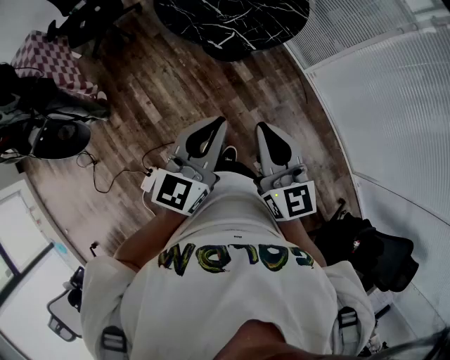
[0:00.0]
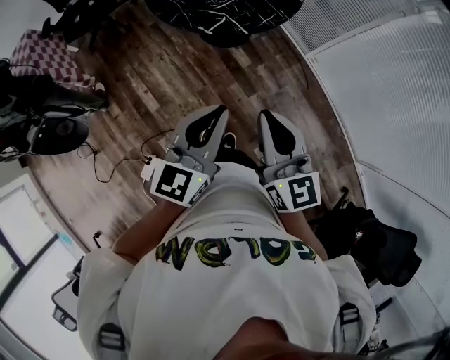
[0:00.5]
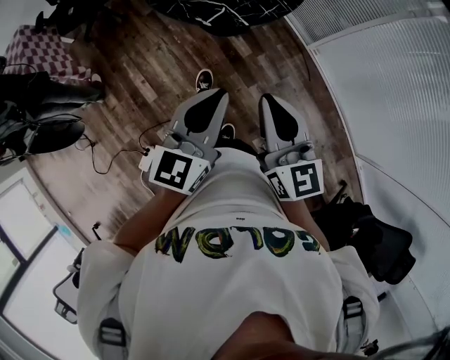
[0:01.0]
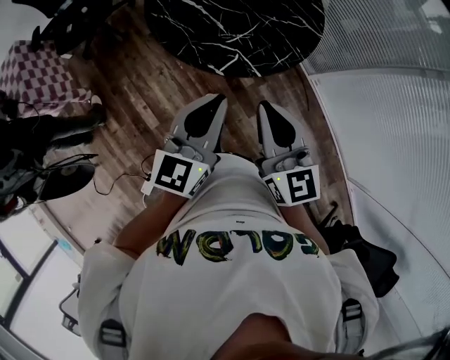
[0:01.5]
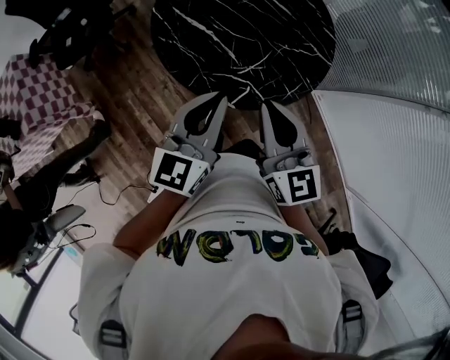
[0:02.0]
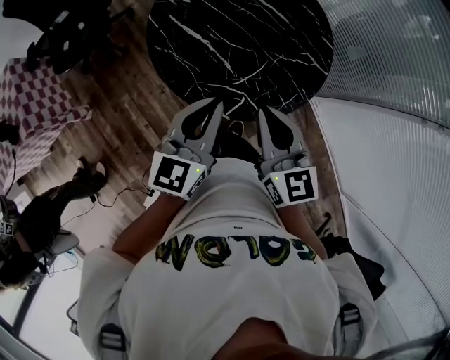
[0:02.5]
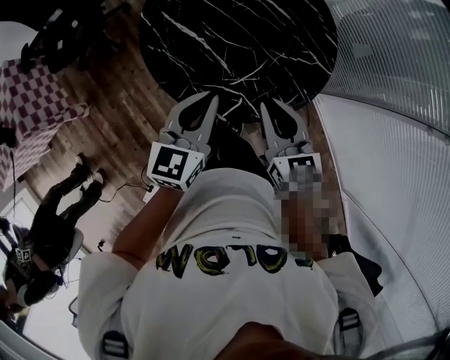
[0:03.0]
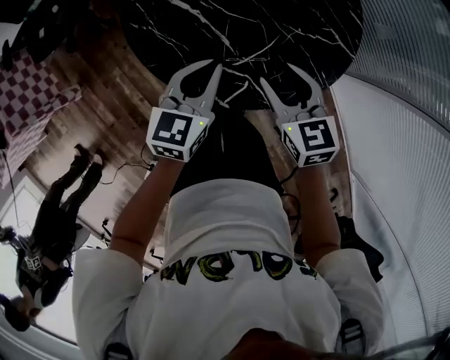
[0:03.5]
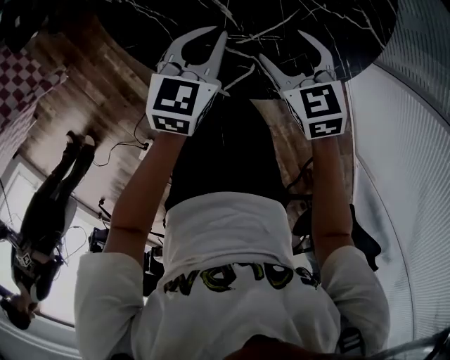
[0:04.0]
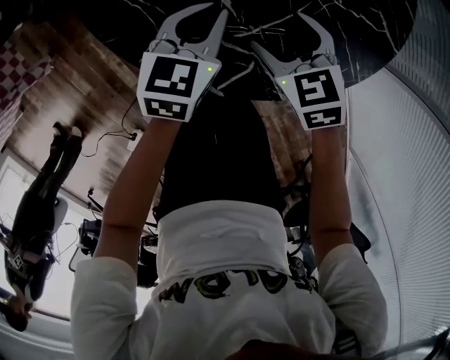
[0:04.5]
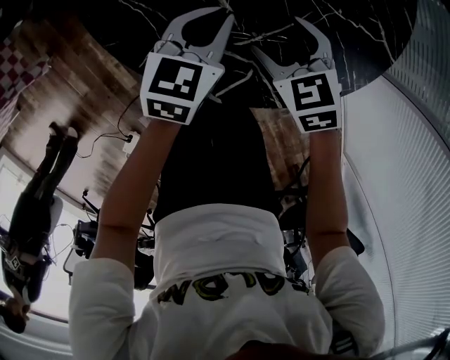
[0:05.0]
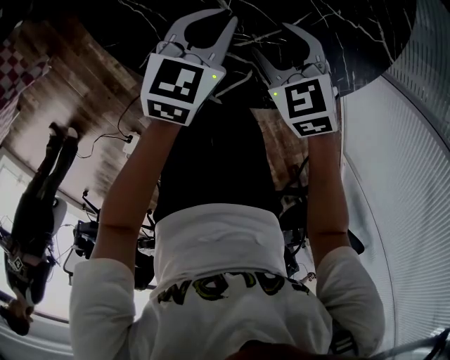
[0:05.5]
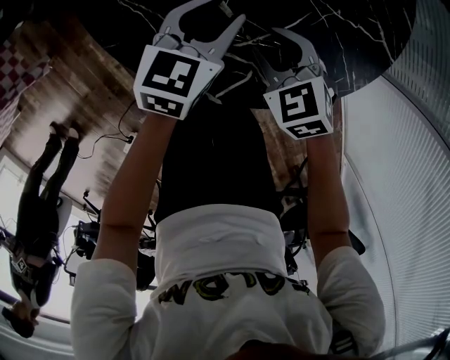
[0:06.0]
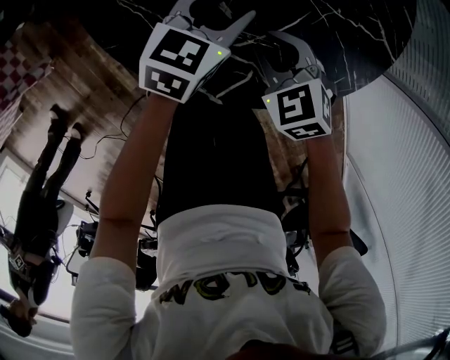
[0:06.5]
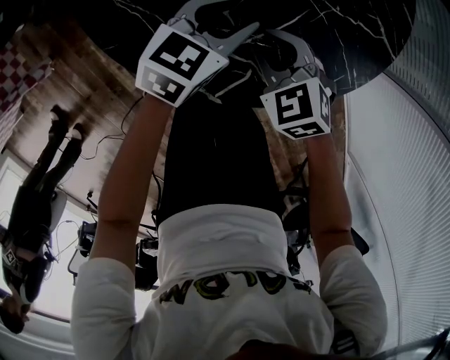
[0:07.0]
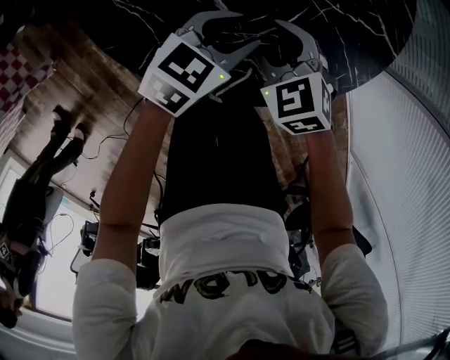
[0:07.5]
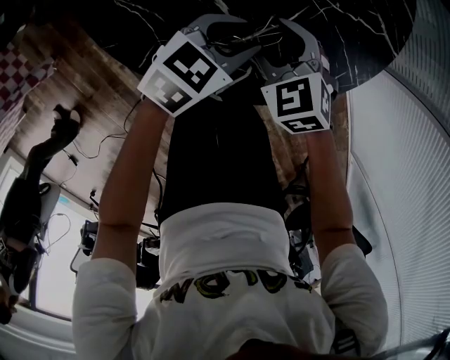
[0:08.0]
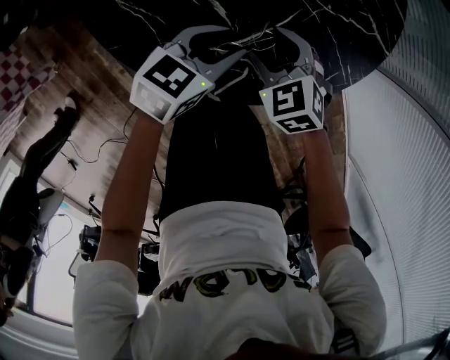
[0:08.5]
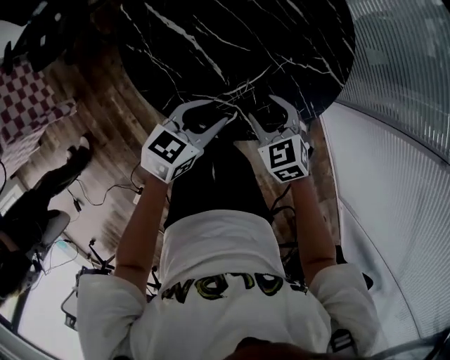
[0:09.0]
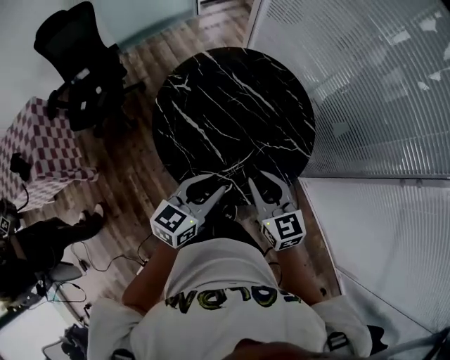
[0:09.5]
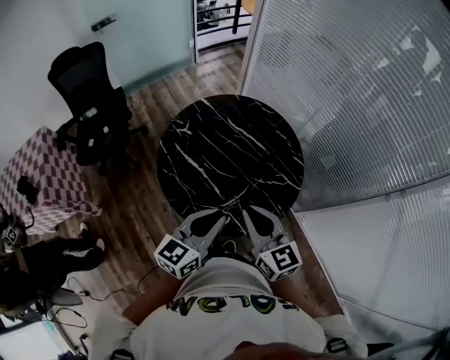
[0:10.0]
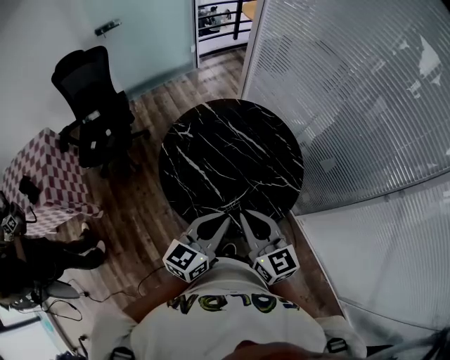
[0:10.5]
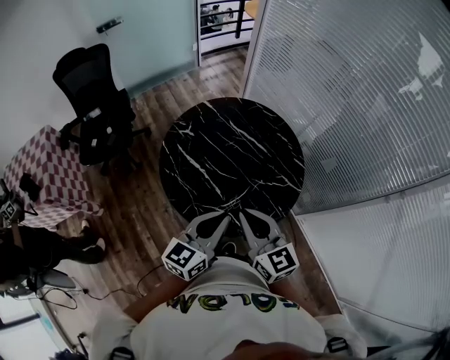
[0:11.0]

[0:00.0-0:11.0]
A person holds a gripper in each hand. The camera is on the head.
0:00.0 to 0:02.0: Both grippers travel together forward, about 40 cm.
0:02.0 to 0:03.5: The grippers both shift downward and forward by roughly 25 cm. The right gripper rotates roughly 30 degrees, and opens its fingers.
0:03.5 to 0:05.5: Both grippers move downward, some 20 cm. The right gripper turns by about 30 degrees.
0:05.5 to 0:07.5: The left gripper heads to the right, covering roughly 5 cm, changes its angle by approximately 20 degrees, and opens its fingers, while the right gripper closes, then reopens.
0:07.5 to 0:09.0: The right gripper is displaced upward by approximately 10 cm. Meanwhile the left gripper heads upward and backward, covering some 15 cm.
0:09.0 to 0:11.0: The two grippers go roughly 30 cm upward. The left gripper swivels approximately 30 degrees, and closes its fingers, while the right gripper tilts its fingers approximately 40 degrees upward, and closes its fingers.

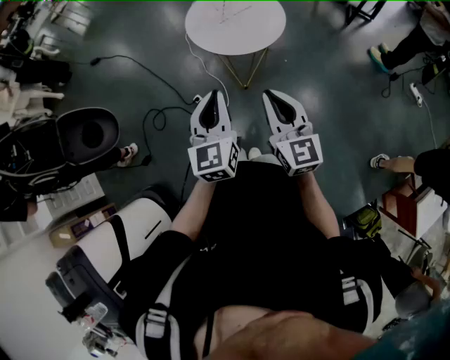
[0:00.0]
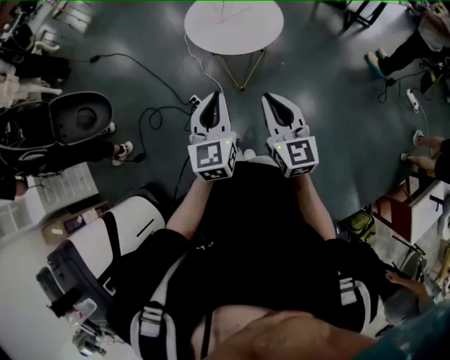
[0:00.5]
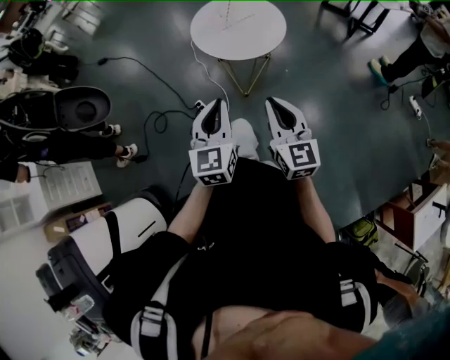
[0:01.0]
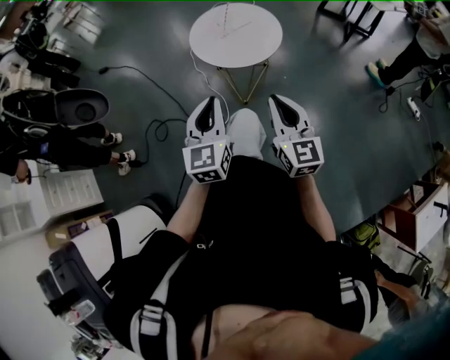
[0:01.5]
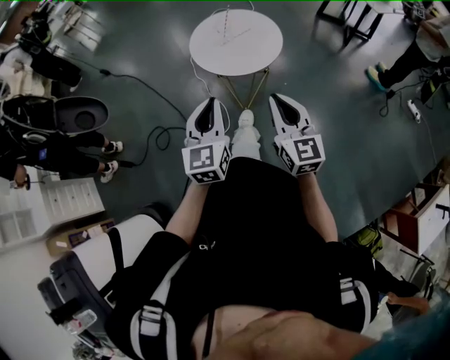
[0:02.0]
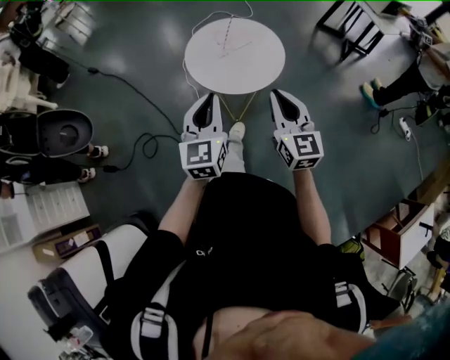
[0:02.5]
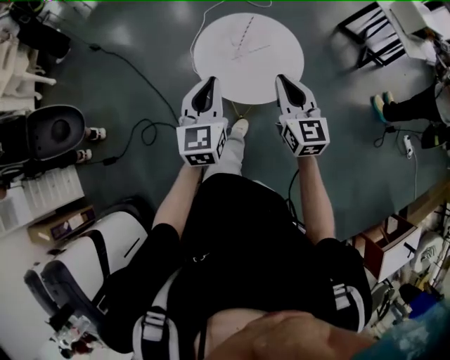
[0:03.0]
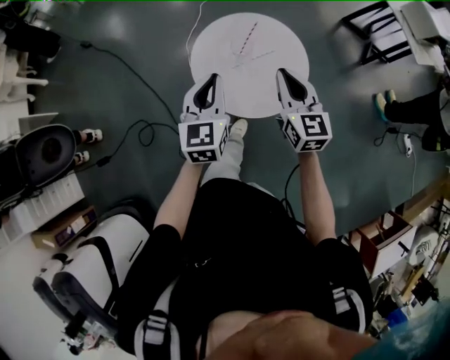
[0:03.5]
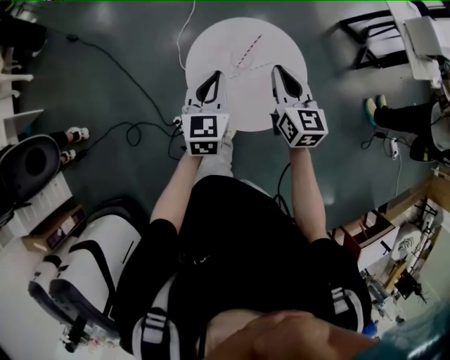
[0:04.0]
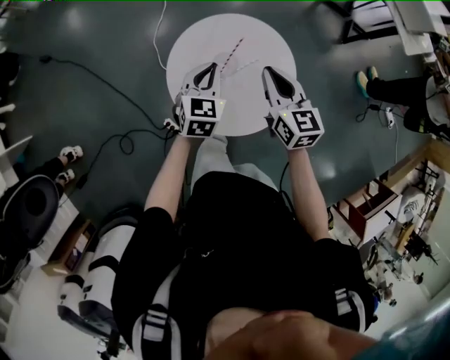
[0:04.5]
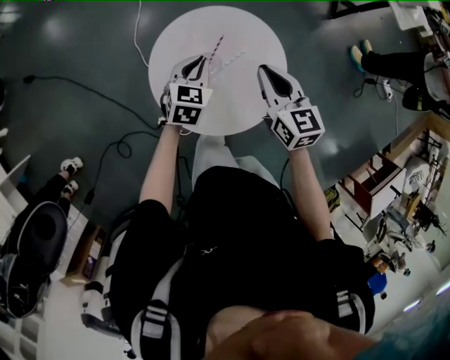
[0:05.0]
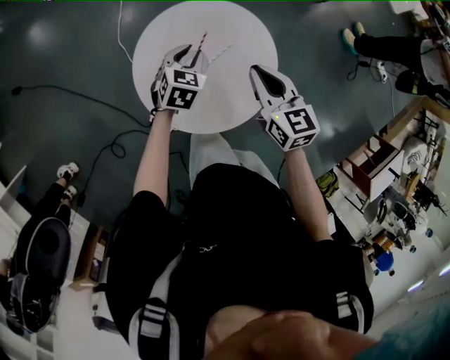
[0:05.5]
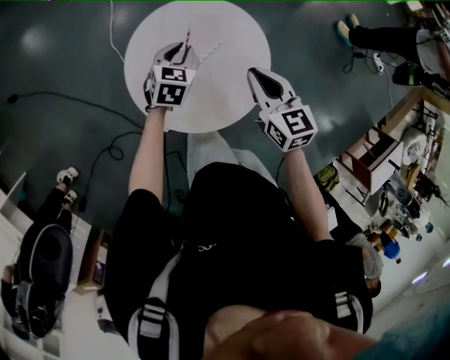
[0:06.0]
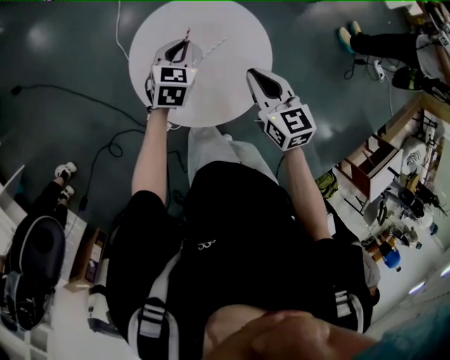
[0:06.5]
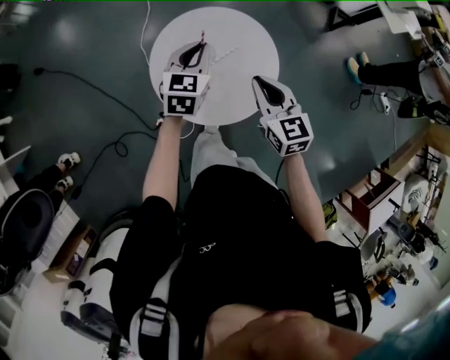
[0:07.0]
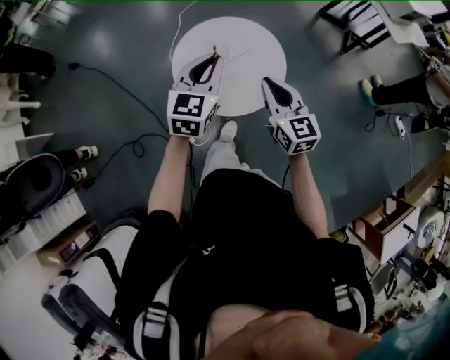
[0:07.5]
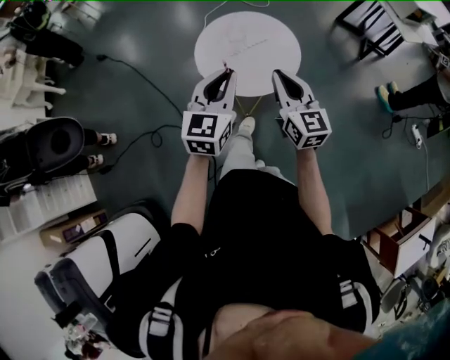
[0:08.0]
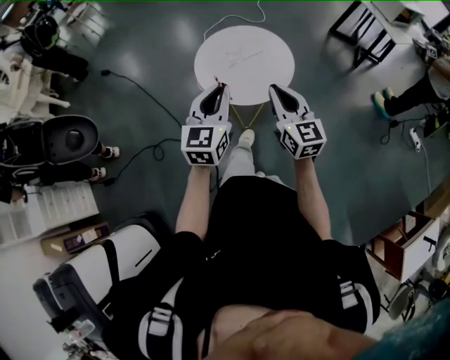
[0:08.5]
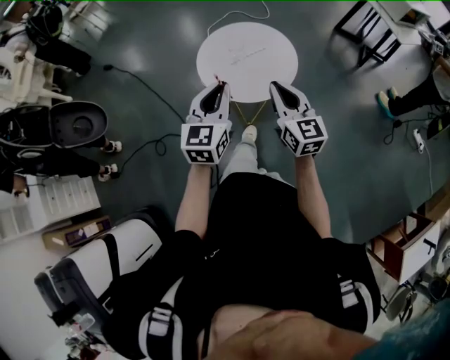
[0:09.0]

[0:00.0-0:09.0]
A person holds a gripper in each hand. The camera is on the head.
0:00.0 to 0:02.0: The right gripper ends up some 5 cm from where it was.
0:02.0 to 0:04.5: The two grippers travel together, forward, about 50 cm. The left gripper rotates some 30 degrees. Meanwhile the right gripper turns by about 20 degrees.
0:04.5 to 0:07.0: The right gripper travels backward by some 10 cm. Meanwhile the left gripper moves some 10 cm downward and comes back.
0:07.0 to 0:09.0: The right gripper is displaced backward by some 20 cm, and changes its angle by some 20 degrees. Meanwhile the left gripper moves backward, roughly 30 cm, and rotates roughly 20 degrees.

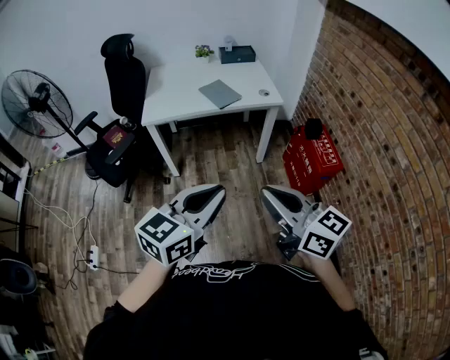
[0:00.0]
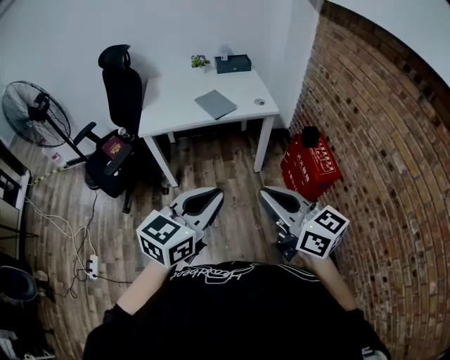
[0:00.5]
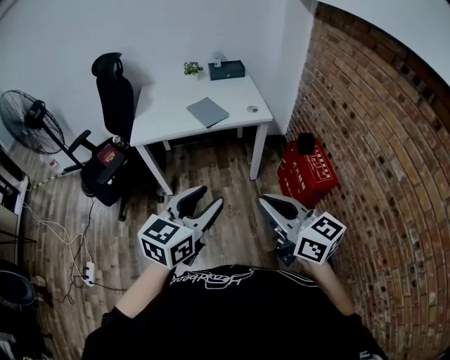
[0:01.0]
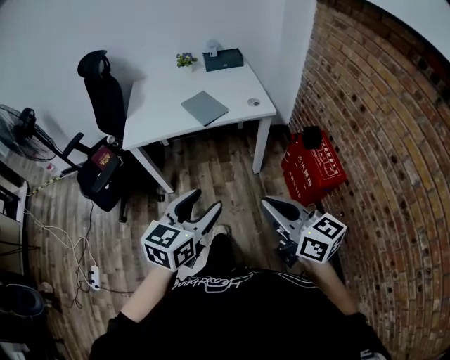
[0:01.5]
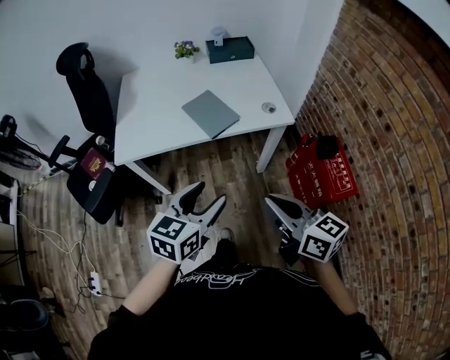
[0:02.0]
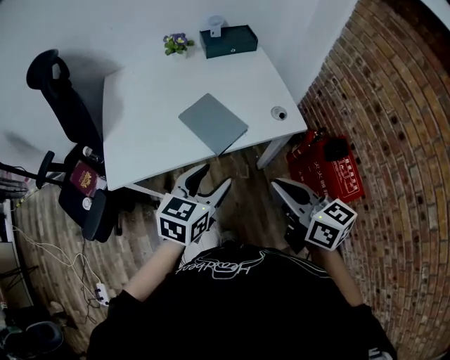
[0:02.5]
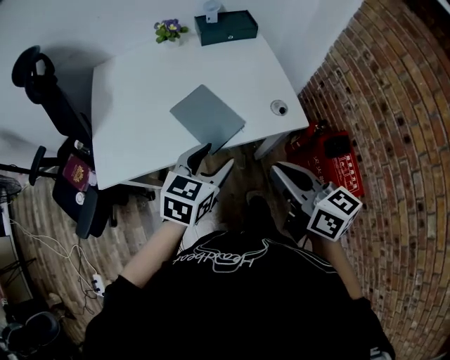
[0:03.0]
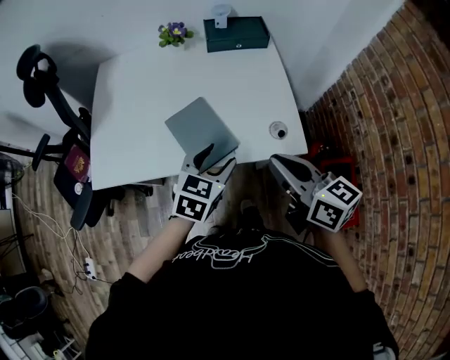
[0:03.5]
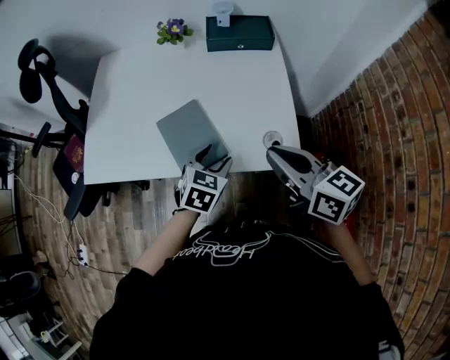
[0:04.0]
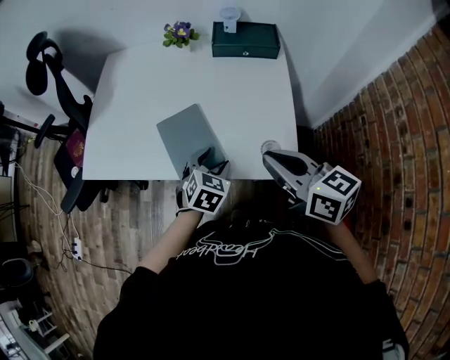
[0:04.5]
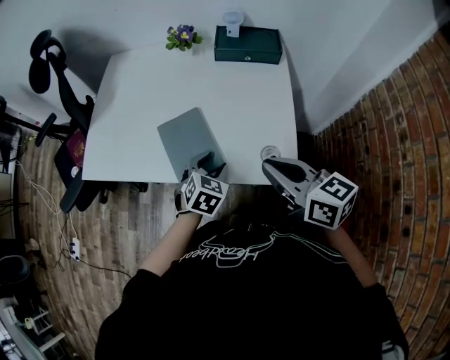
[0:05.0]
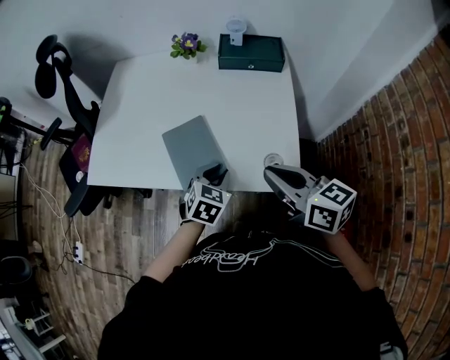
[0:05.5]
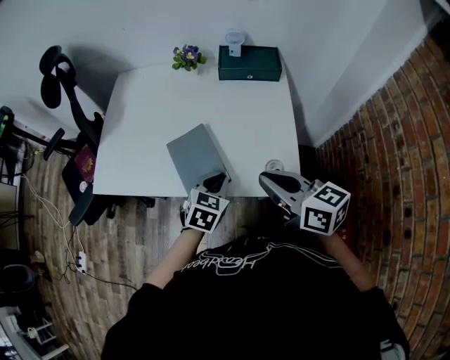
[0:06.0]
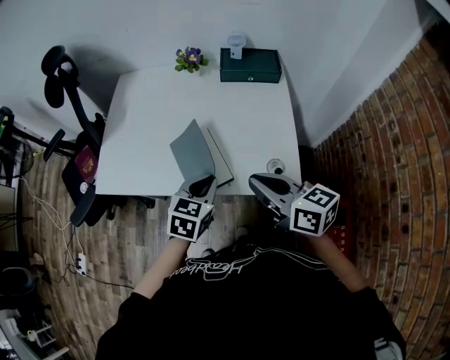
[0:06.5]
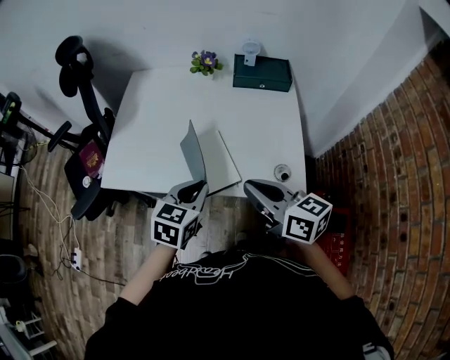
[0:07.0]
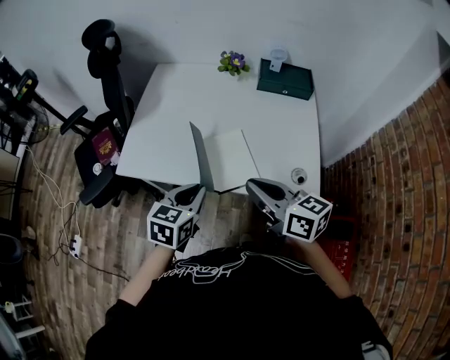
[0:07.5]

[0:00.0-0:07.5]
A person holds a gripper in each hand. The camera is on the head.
0:00.0 to 0:02.0: The left gripper travels forward and downward by approximately 35 cm, and opens its fingers. Meanwhile the right gripper goes some 30 cm forward.
0:02.0 to 0:04.0: The left gripper moves forward and downward, some 35 cm, and turns by some 30 degrees, while the right gripper heads forward, covering roughly 35 cm.
0:04.0 to 0:05.5: The left gripper closes up.
0:05.5 to 0:07.5: The left gripper moves to the left and upward, roughly 20 cm, and swivels roughly 20 degrees, while the right gripper is displaced to the left by about 15 cm.
